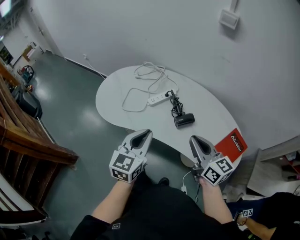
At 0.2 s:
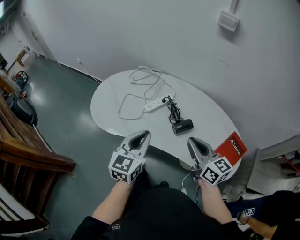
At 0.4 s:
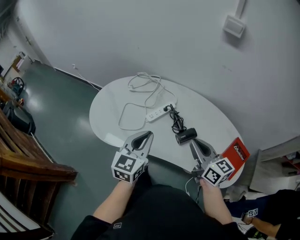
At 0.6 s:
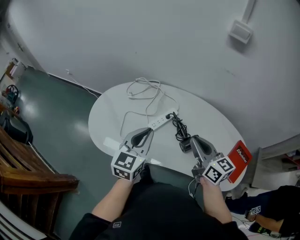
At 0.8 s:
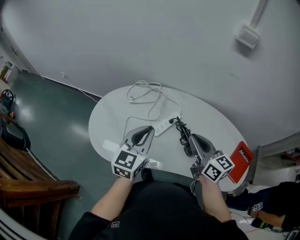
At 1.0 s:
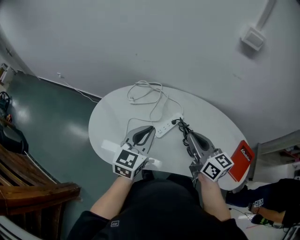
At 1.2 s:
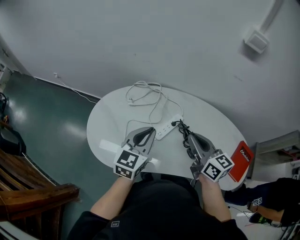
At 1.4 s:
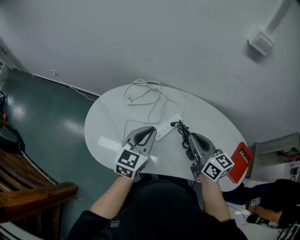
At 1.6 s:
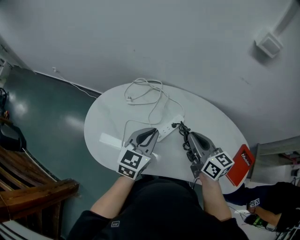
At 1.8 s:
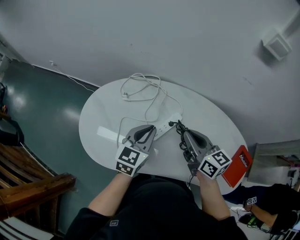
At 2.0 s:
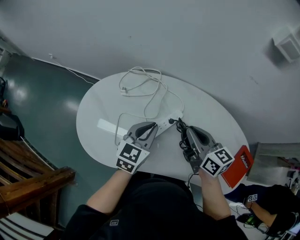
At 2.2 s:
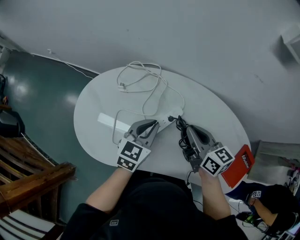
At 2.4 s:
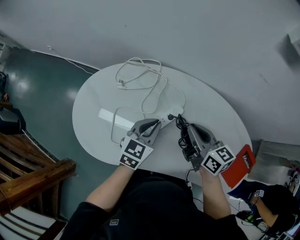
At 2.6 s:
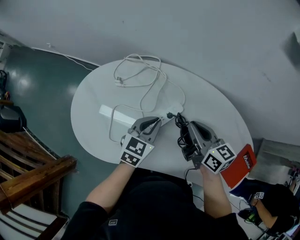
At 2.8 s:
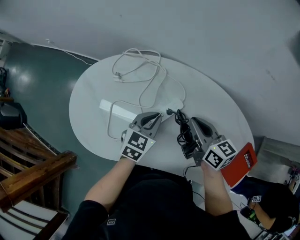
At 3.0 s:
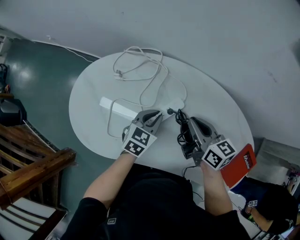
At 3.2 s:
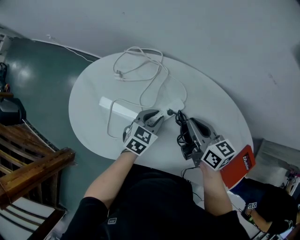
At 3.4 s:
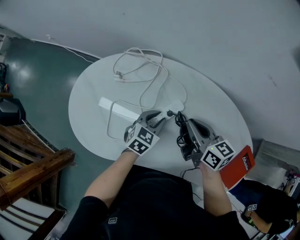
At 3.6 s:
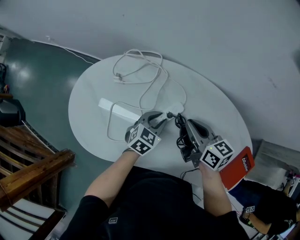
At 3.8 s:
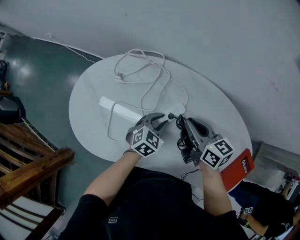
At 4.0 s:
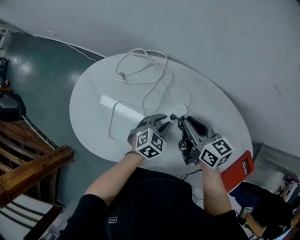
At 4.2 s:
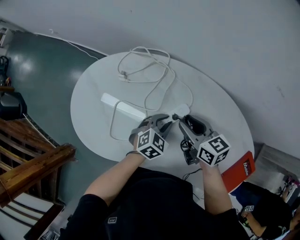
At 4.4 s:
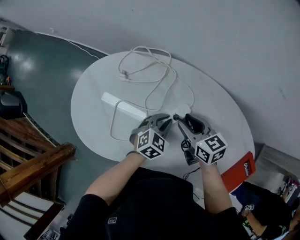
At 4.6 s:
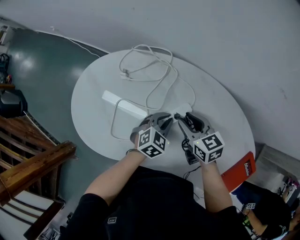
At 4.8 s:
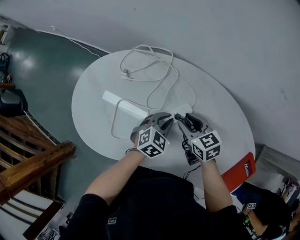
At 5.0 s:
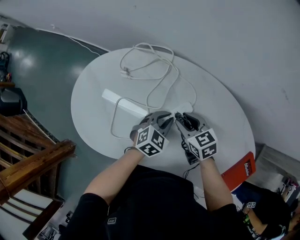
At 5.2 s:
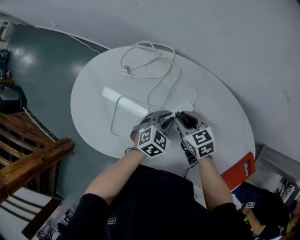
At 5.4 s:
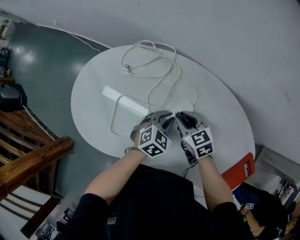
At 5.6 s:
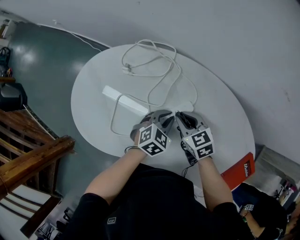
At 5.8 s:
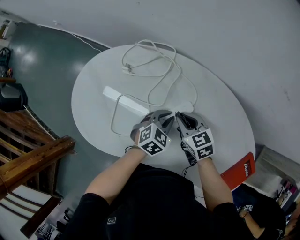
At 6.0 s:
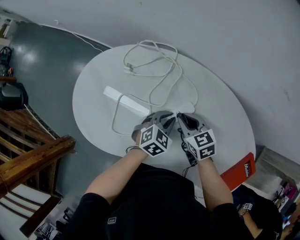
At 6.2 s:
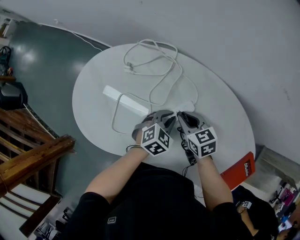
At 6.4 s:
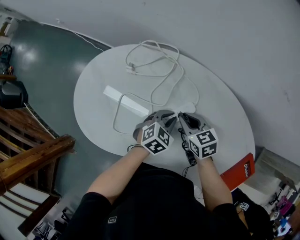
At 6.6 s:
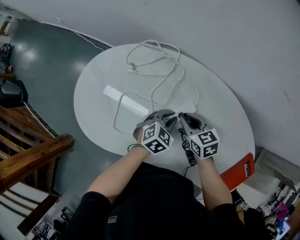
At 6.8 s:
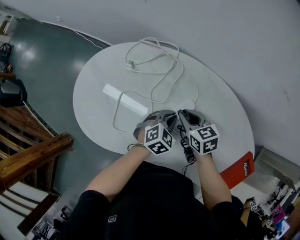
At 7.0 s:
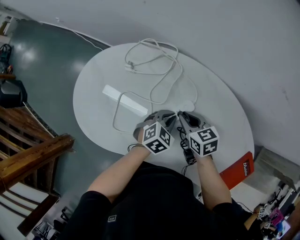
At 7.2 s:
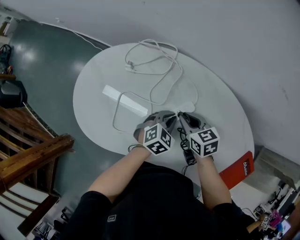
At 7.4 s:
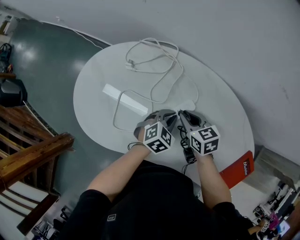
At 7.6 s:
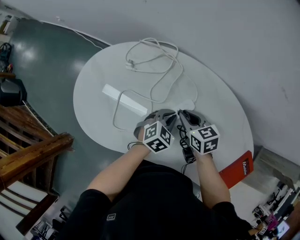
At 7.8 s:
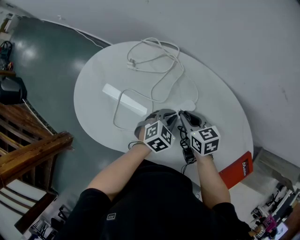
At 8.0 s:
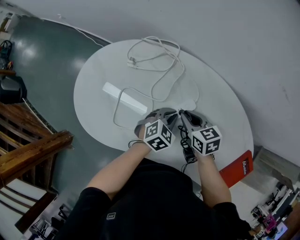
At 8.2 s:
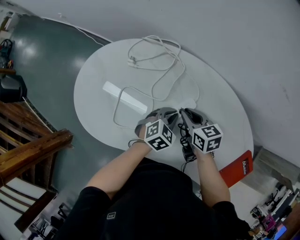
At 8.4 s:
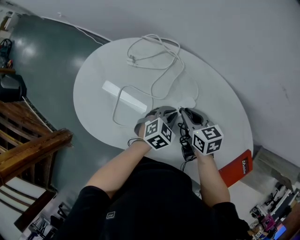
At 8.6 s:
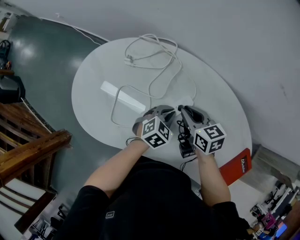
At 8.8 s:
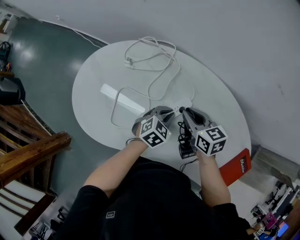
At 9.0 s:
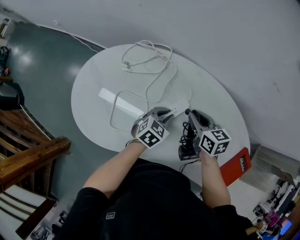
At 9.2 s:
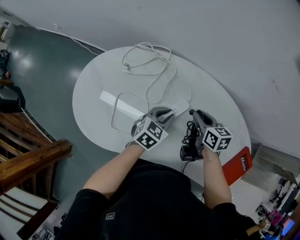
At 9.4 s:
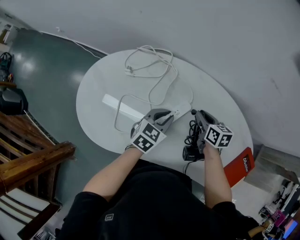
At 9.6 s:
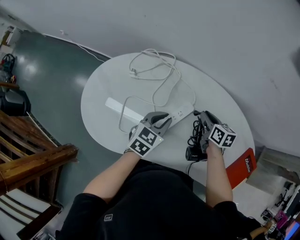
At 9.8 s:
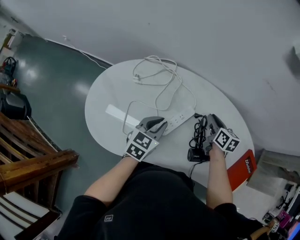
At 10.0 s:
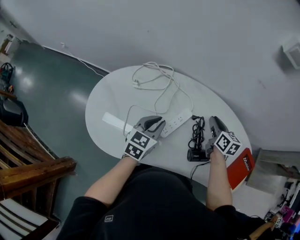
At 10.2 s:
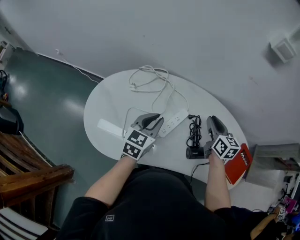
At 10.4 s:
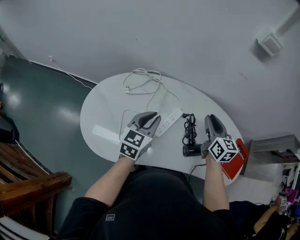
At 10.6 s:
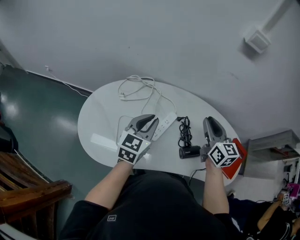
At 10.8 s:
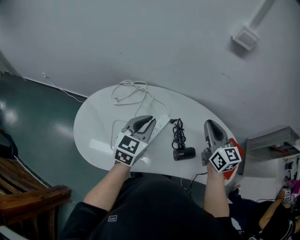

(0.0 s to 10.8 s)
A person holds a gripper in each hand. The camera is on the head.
0.0 s - 1.6 s: The right gripper shifts approximately 30 cm forward and to the left; the left gripper moves forward, about 30 cm.
1.6 s - 3.0 s: The right gripper moves downward and forward, some 10 cm; the left gripper is displaced downward and to the right by roughly 20 cm, and swivels some 20 degrees.
3.0 s - 4.6 s: The right gripper shifts some 10 cm downward and to the left, rotates about 20 degrees, and opens up.
4.6 s - 7.8 s: The grippers move only a little.
7.8 s - 9.2 s: The right gripper moves to the right, roughly 10 cm, and rotates roughly 20 degrees.
9.2 s - 10.8 s: Both grippers move upward, some 20 cm. The left gripper rotates about 20 degrees; the right gripper rotates some 40 degrees.

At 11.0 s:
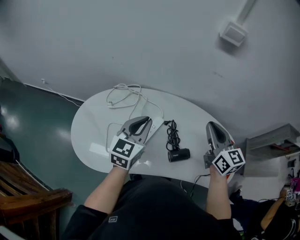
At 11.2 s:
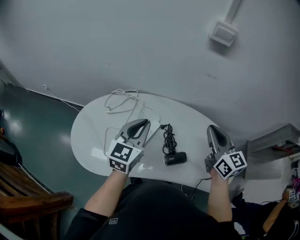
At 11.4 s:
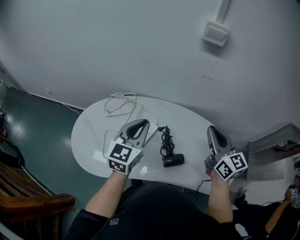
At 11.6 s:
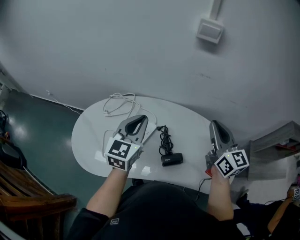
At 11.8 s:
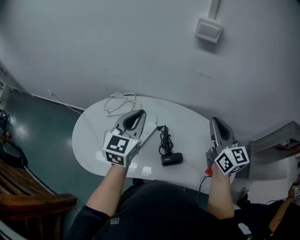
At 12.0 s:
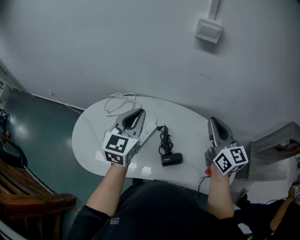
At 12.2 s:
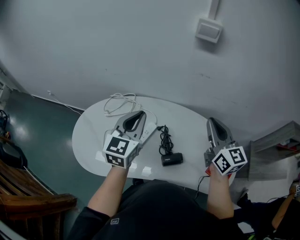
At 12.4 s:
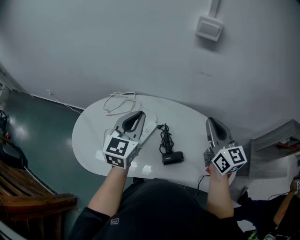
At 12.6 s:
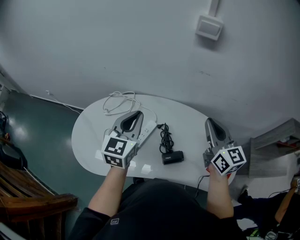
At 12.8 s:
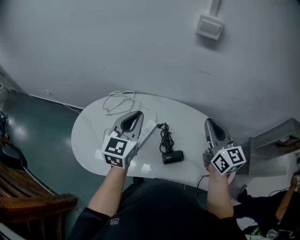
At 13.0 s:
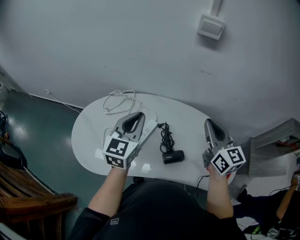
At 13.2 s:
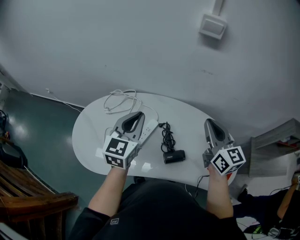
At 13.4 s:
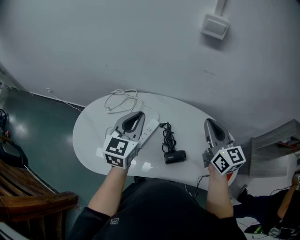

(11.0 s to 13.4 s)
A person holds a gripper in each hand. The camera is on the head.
11.0 s - 12.2 s: The right gripper is displaced to the right by approximately 5 cm, while the left gripper shifts roughly 5 cm upward.
12.2 s - 13.4 s: The grippers make only small movements.

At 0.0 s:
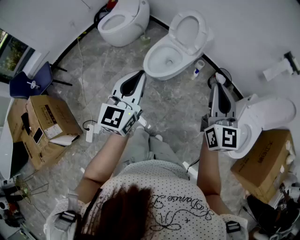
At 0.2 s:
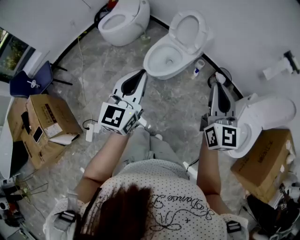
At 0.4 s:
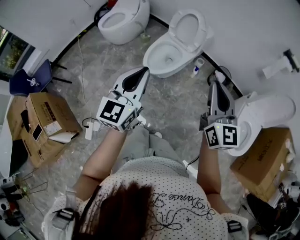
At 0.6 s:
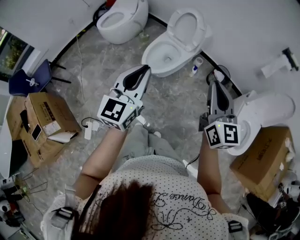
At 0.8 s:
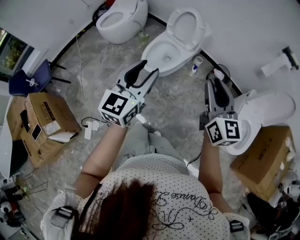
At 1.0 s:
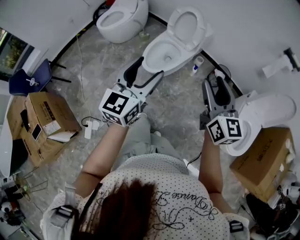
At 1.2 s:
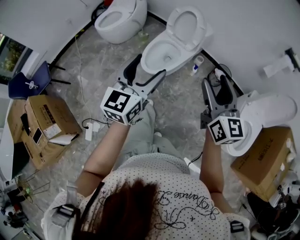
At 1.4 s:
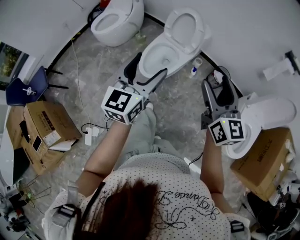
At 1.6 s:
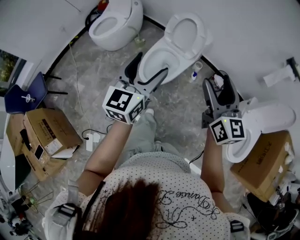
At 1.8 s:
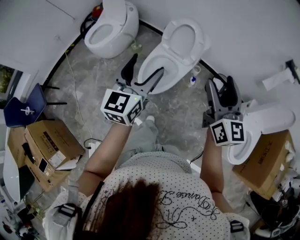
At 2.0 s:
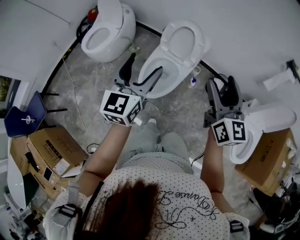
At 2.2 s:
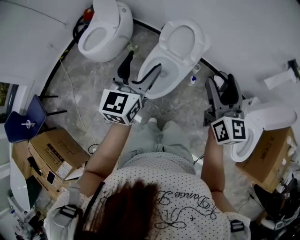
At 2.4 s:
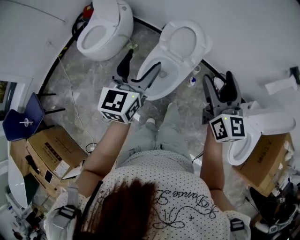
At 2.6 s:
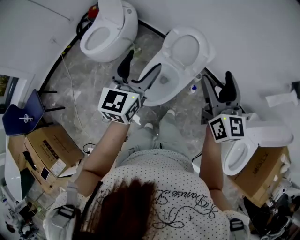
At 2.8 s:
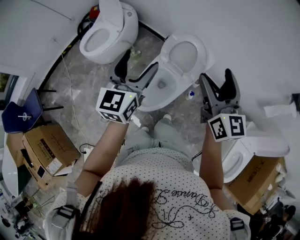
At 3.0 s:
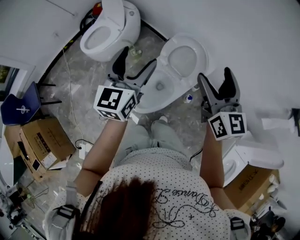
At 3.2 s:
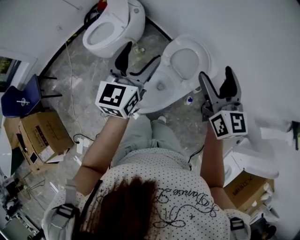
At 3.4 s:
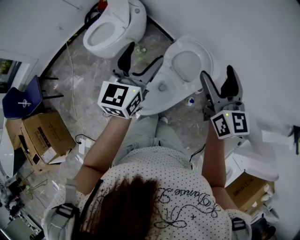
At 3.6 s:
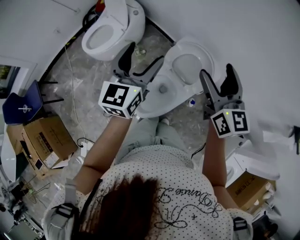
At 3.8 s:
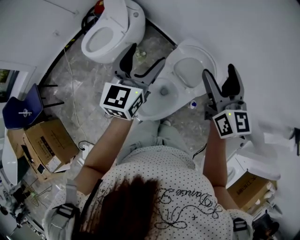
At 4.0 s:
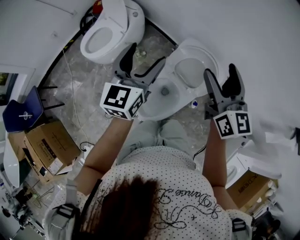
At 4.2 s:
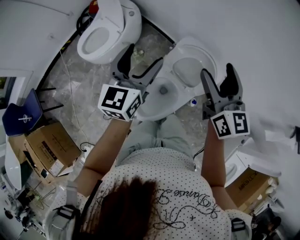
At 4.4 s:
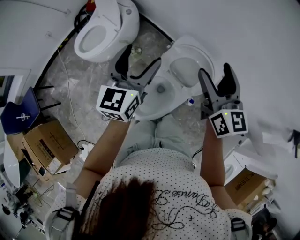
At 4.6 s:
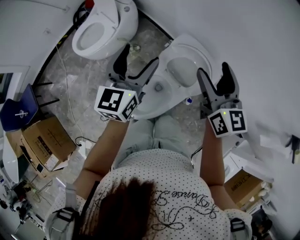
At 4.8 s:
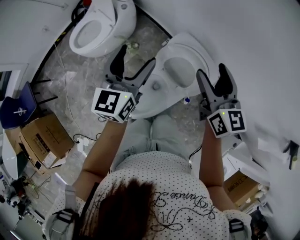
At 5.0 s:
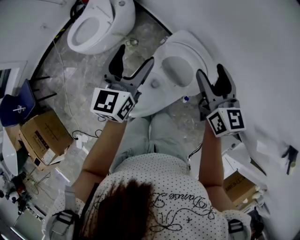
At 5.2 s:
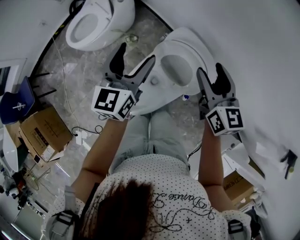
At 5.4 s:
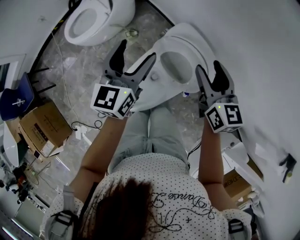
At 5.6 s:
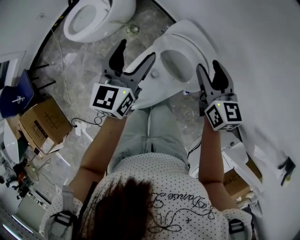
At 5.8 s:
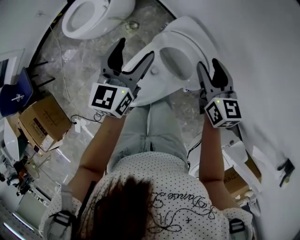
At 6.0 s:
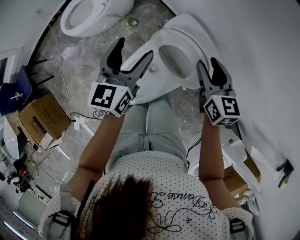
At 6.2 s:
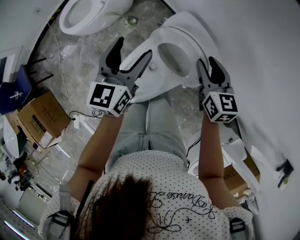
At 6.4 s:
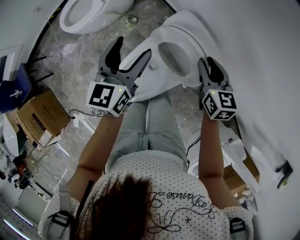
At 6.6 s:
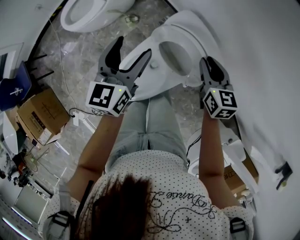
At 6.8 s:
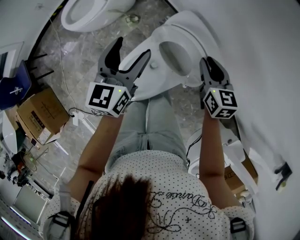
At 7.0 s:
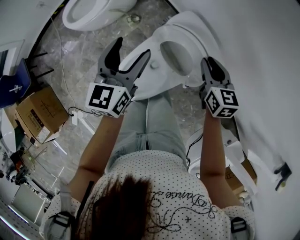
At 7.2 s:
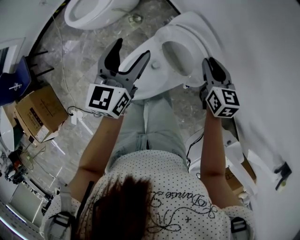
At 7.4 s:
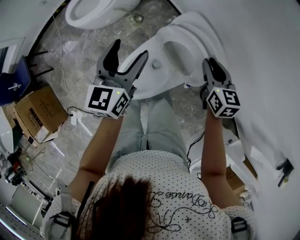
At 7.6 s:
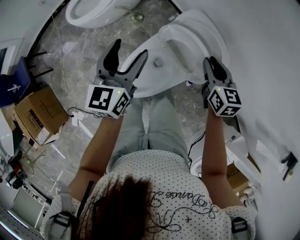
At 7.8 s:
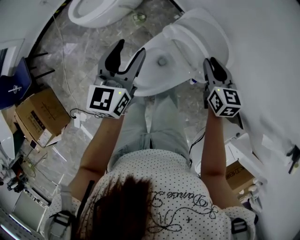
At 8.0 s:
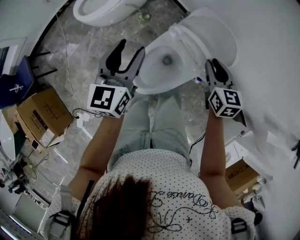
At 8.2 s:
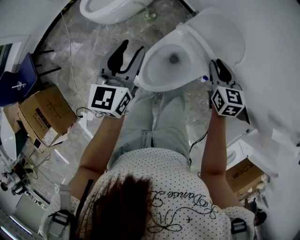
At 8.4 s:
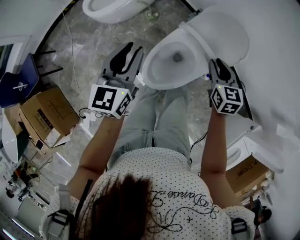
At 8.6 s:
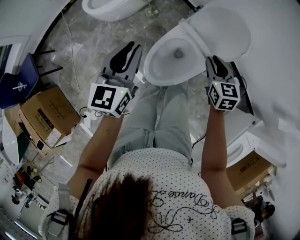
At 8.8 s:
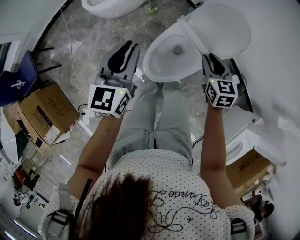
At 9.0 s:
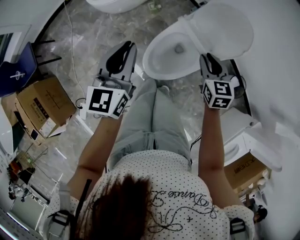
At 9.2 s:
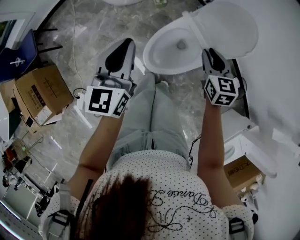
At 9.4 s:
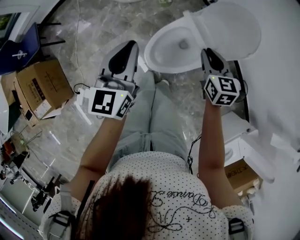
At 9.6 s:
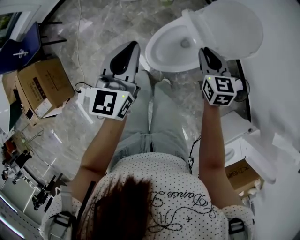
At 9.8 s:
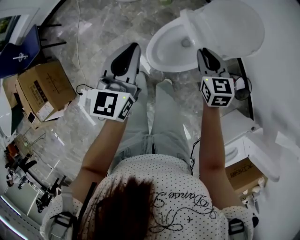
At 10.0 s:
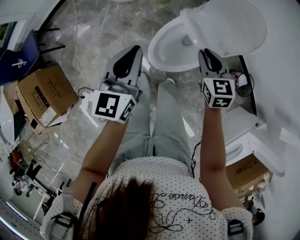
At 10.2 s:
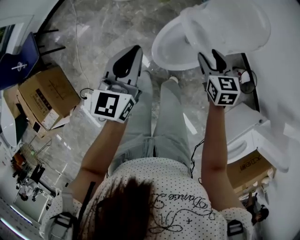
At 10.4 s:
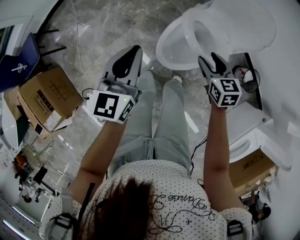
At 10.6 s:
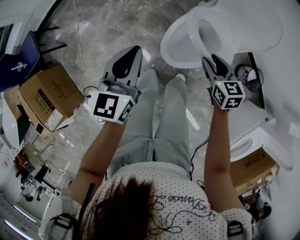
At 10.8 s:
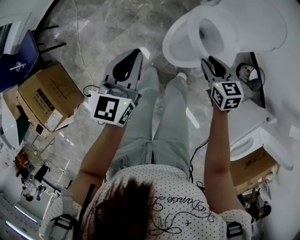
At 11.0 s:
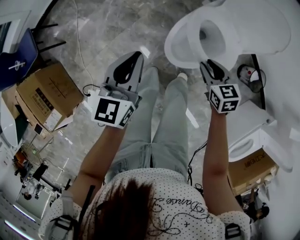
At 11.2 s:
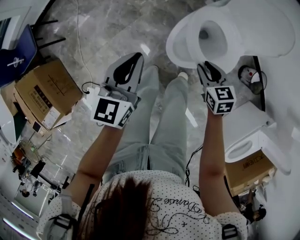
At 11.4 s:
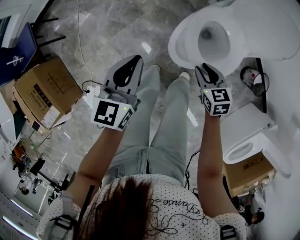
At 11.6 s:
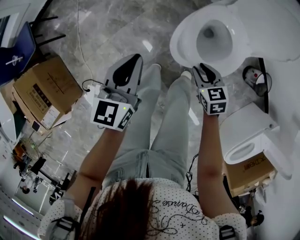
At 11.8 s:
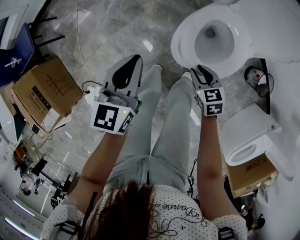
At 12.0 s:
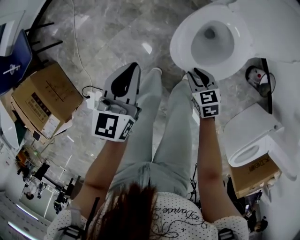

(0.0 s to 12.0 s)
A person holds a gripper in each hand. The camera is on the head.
0.0 s - 1.6 s: Both grippers travel together forward, approximately 15 cm. The right gripper opens its fingers. The left gripper opens its fingers.
1.6 s - 3.0 s: The grippers both shift forward by roughly 35 cm.
3.0 s - 4.4 s: The two grippers go approximately 15 cm forward.
4.4 s - 6.0 s: The right gripper goes some 20 cm downward and to the right, swivels approximately 20 degrees, and closes. The left gripper moves downward, to the right and forward, approximately 15 cm.
6.0 s - 7.6 s: The left gripper travels to the left and backward by roughly 10 cm. The right gripper shifts by some 5 cm.
7.6 s - 9.0 s: The grippers both shift to the left and backward by about 25 cm. The left gripper closes its fingers.
9.0 s - 10.4 s: The right gripper travels to the left, downward and backward by approximately 10 cm; the left gripper shifts about 5 cm to the left.
10.4 s - 12.0 s: The two grippers go about 20 cm downward and to the left.
